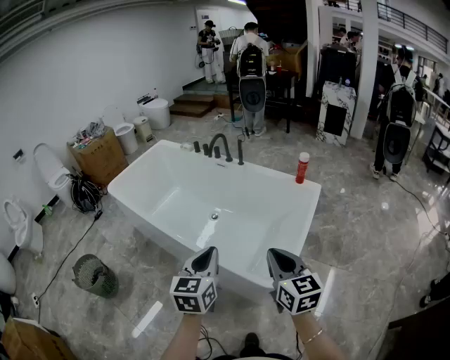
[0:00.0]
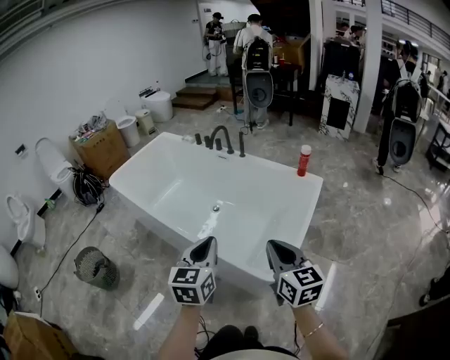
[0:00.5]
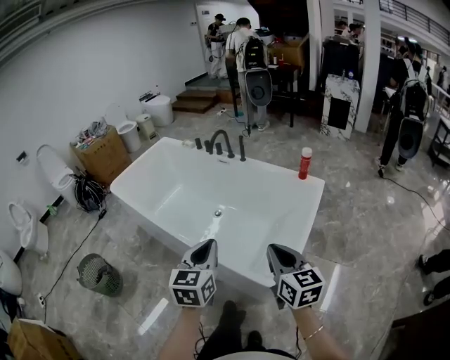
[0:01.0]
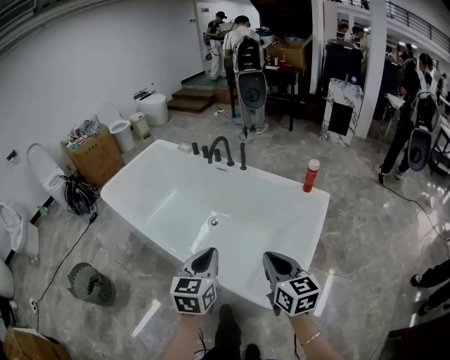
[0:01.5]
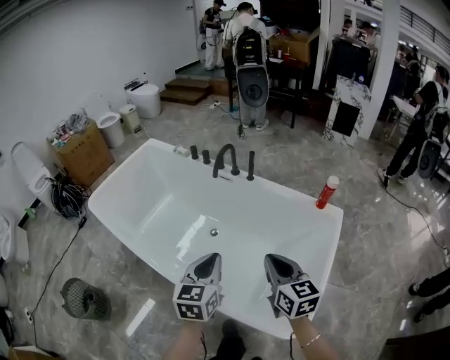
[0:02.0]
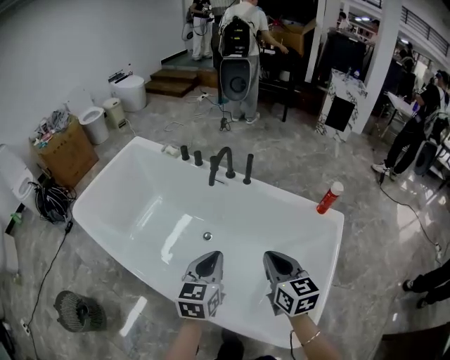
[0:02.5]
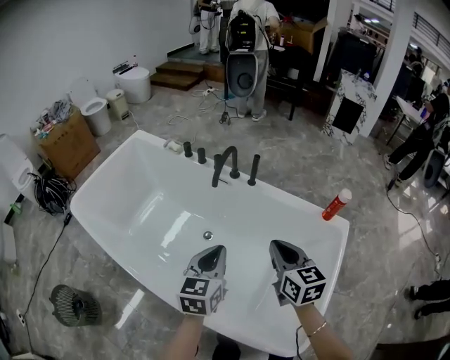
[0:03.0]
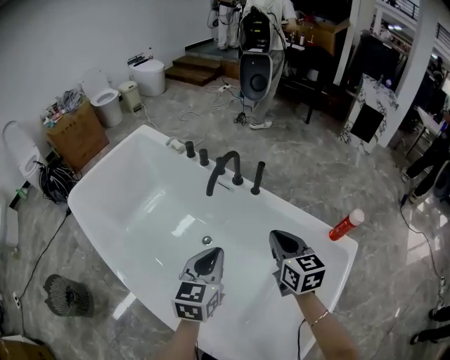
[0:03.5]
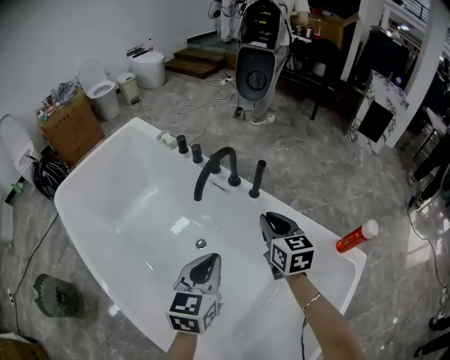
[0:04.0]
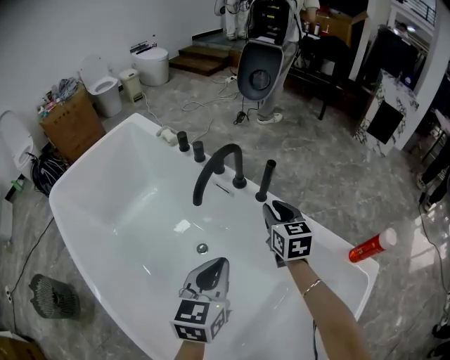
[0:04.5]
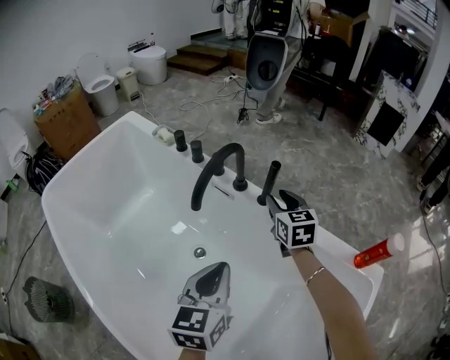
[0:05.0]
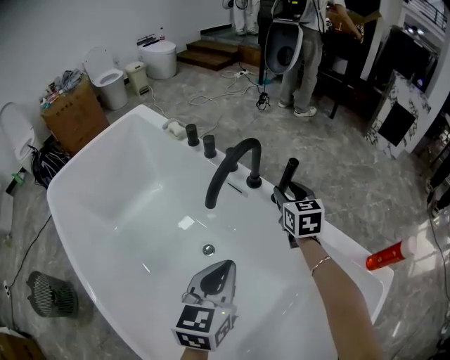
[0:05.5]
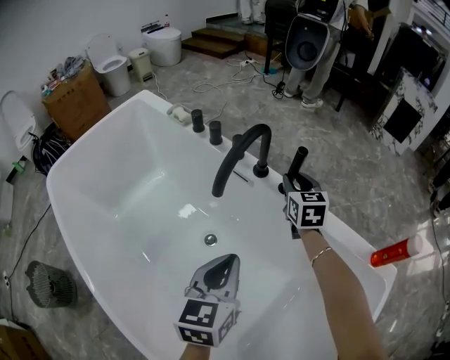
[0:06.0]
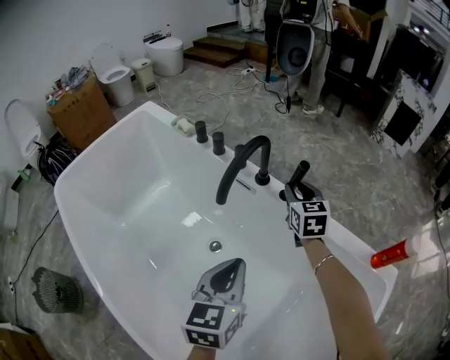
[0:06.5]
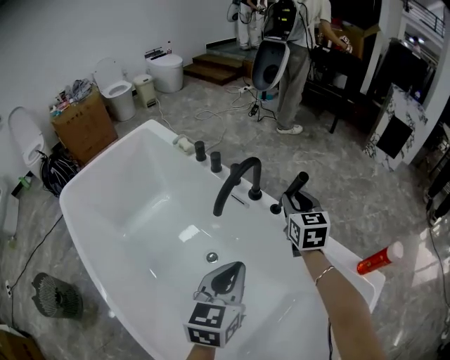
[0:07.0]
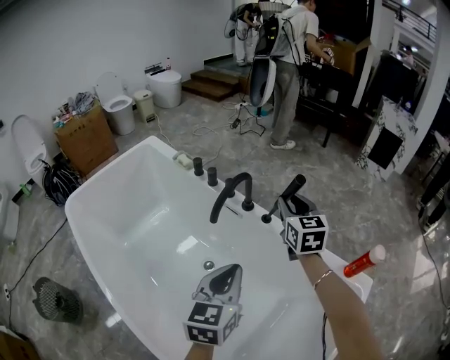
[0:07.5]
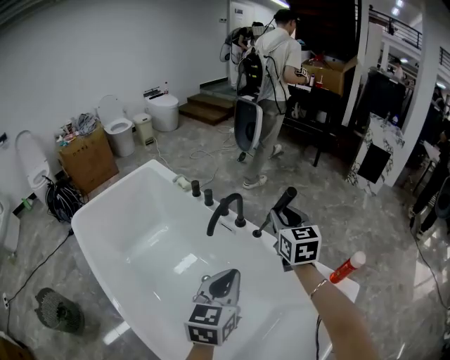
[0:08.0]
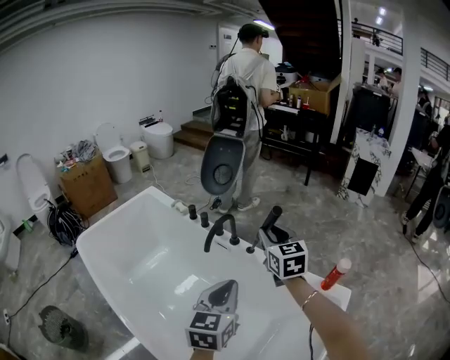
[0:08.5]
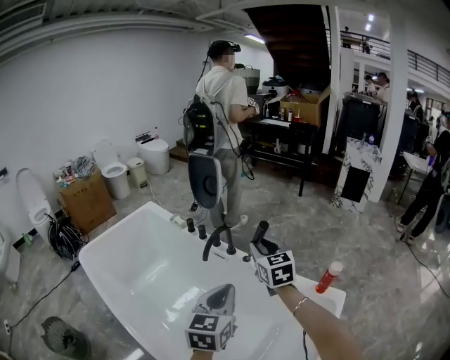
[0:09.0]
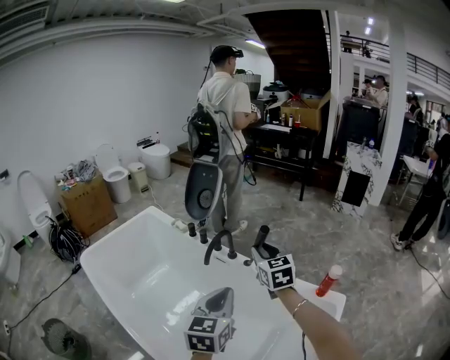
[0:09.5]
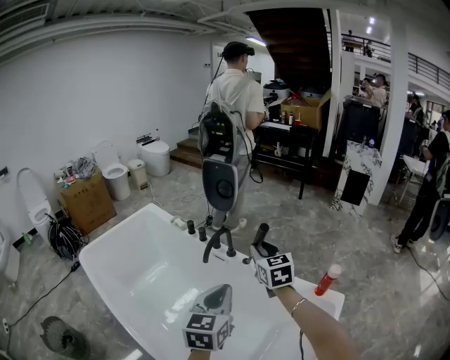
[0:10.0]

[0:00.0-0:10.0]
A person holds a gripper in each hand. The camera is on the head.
0.0 to 2.0 s: The two grippers travel together, forward, roughly 40 cm.
2.0 to 4.0 s: The two grippers travel together, forward, roughly 50 cm. Both grippers move downward, roughly 20 cm.
4.0 to 6.0 s: The left gripper is displaced downward and forward by approximately 20 cm. The right gripper moves forward and downward, roughly 30 cm.
6.0 to 8.0 s: The grippers both shift upward and backward by some 35 cm.
8.0 to 10.0 s: The left gripper shifts some 15 cm upward and backward, while the right gripper shifts some 20 cm backward and upward.

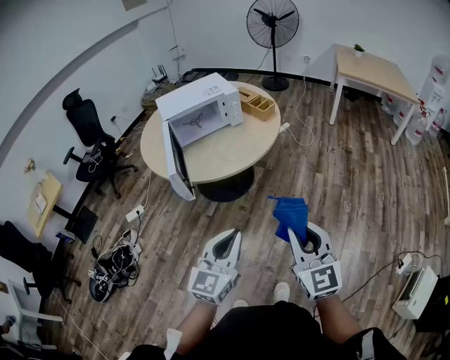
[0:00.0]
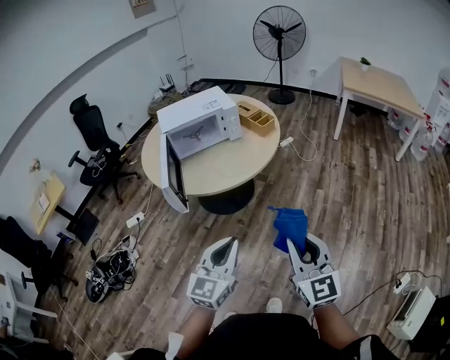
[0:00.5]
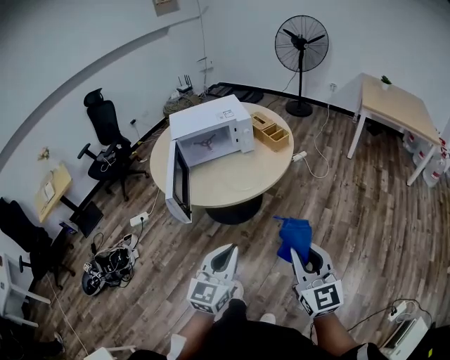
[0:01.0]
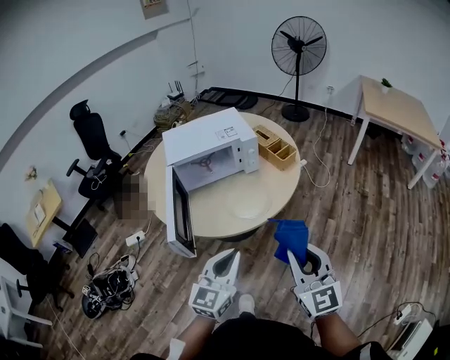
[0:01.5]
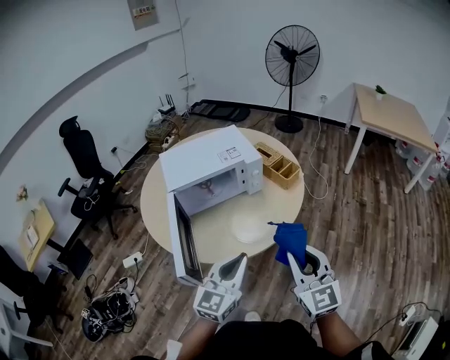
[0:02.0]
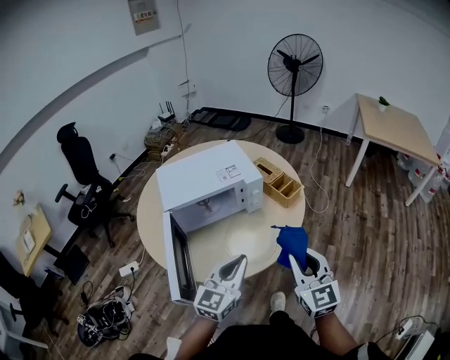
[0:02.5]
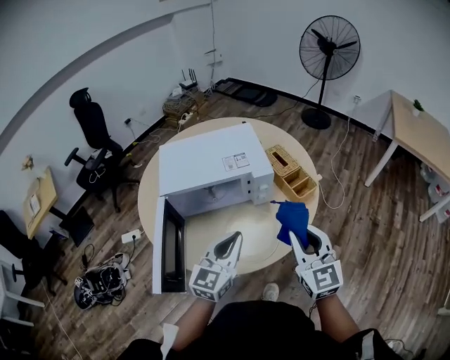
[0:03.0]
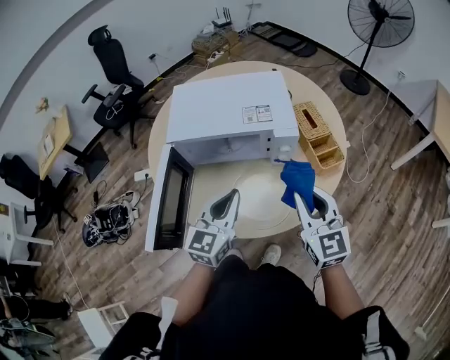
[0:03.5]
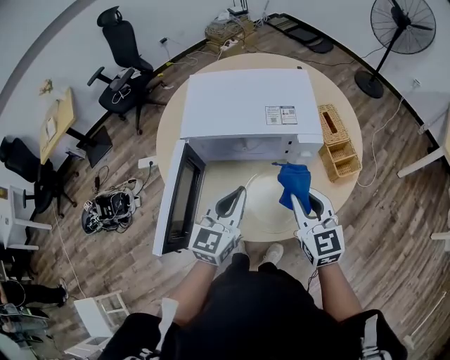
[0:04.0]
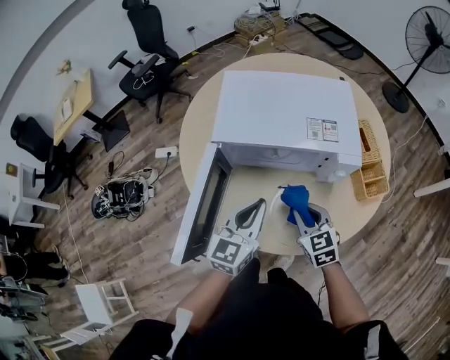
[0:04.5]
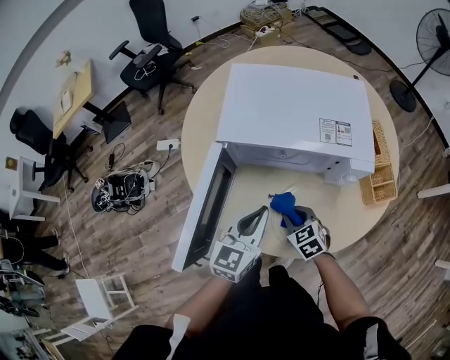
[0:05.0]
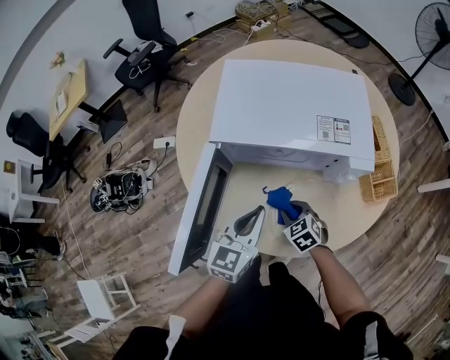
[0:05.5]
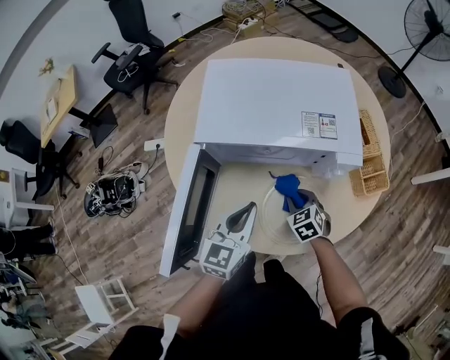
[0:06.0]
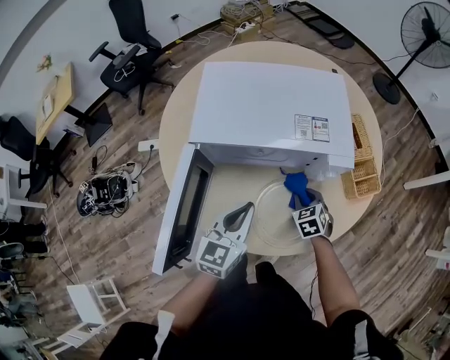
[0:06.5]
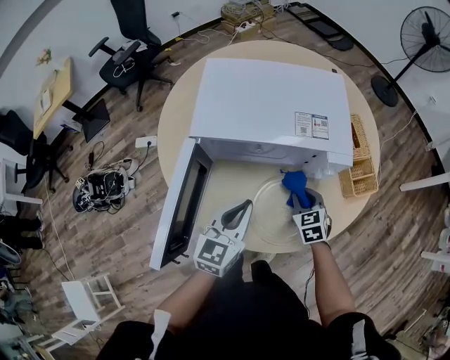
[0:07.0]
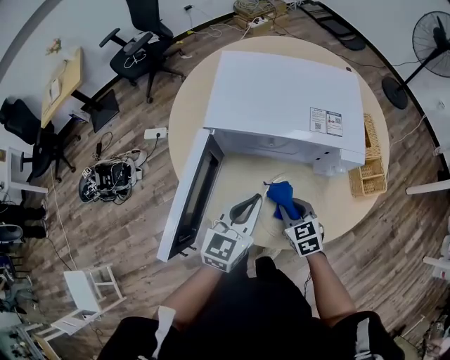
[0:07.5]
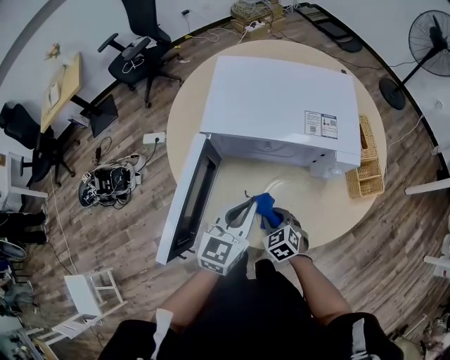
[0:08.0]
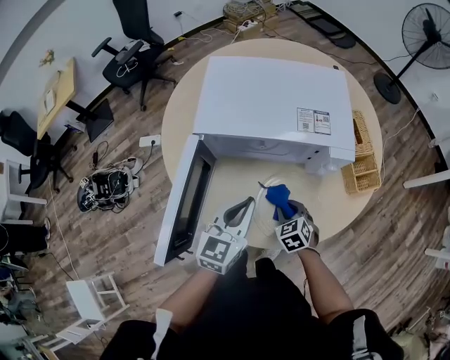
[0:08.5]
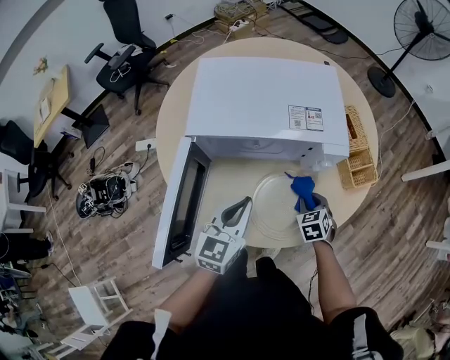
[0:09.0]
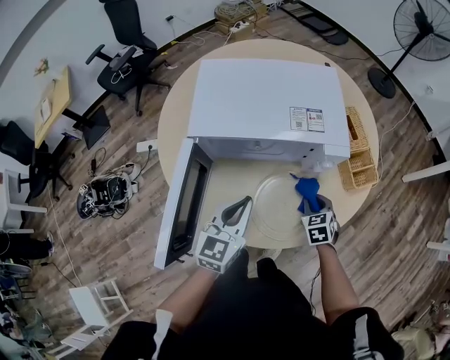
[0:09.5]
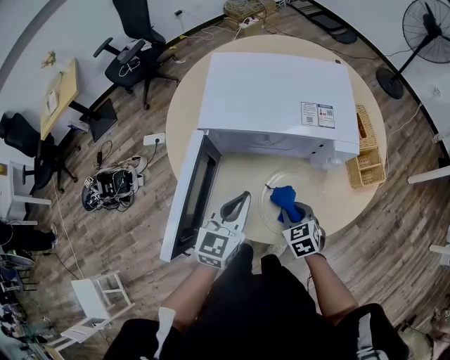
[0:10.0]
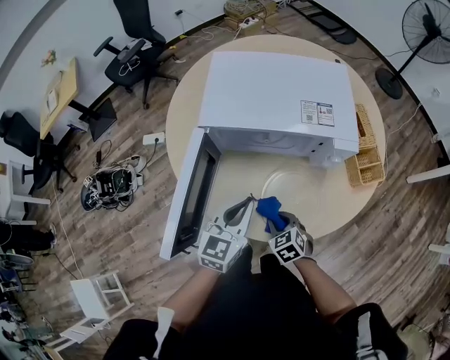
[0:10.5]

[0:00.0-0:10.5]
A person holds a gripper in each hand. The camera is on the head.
0.0 to 2.0 s: The two grippers go approximately 30 cm forward.
2.0 to 4.0 s: The right gripper moves approximately 30 cm, and changes its angle by some 30 degrees, while the left gripper changes place by about 25 cm, and swivels roughly 30 degrees.
4.0 to 6.5 s: The left gripper heads downward, covering roughly 5 cm; the right gripper shifts approximately 25 cm downward, and points its fingers approximately 40 degrees further downward.
6.5 to 8.5 s: The right gripper goes approximately 10 cm backward and to the left.
8.5 to 10.5 s: The right gripper travels backward by approximately 5 cm, and goes to the right and returns, approximately 10 cm each way.

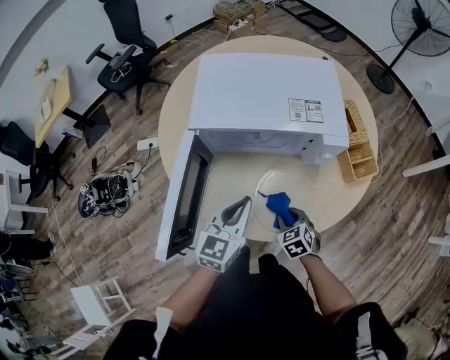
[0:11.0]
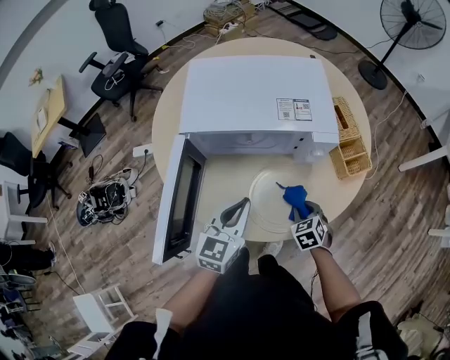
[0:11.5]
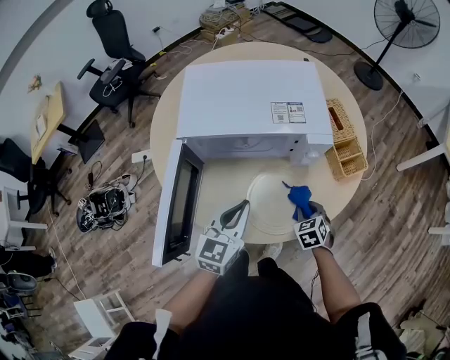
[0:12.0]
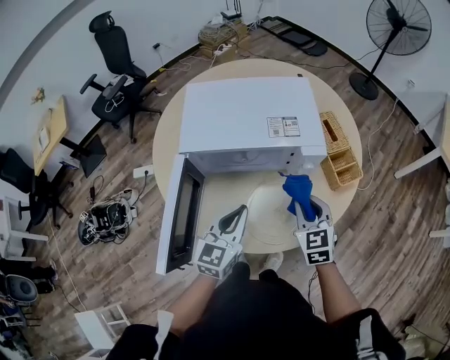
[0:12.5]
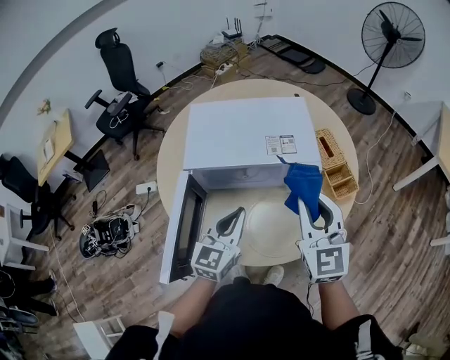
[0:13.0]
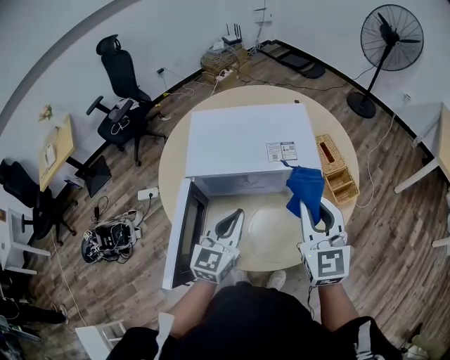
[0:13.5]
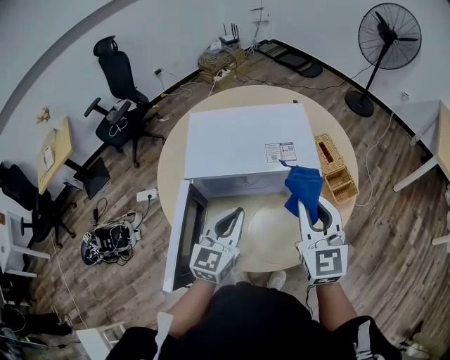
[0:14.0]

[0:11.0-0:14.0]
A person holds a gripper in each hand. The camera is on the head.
11.0 to 12.5 s: The right gripper shifts about 20 cm upward and forward, and turns by about 30 degrees.
12.5 to 14.0 s: The left gripper moves upward, about 5 cm, while the right gripper heads upward, covering roughly 15 cm, and changes its angle by roughly 20 degrees.

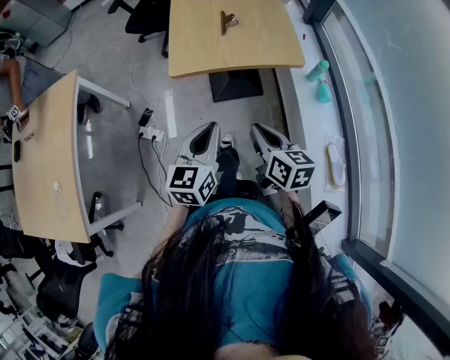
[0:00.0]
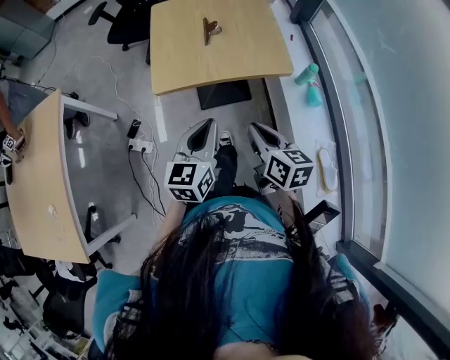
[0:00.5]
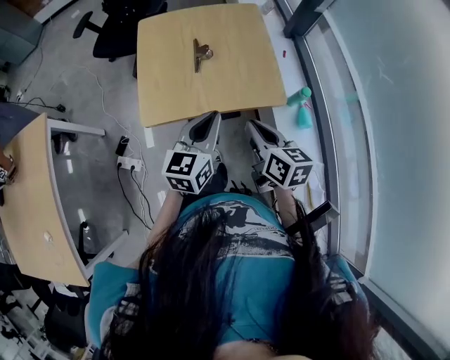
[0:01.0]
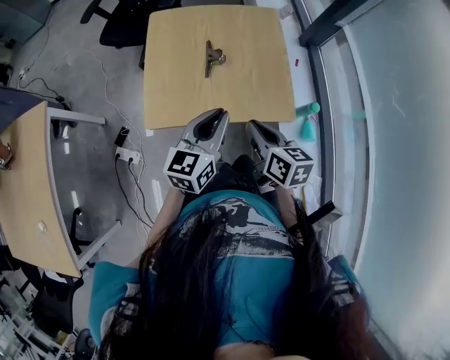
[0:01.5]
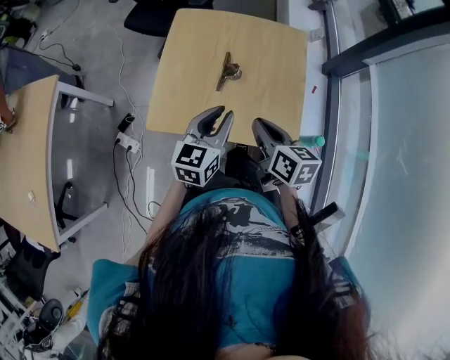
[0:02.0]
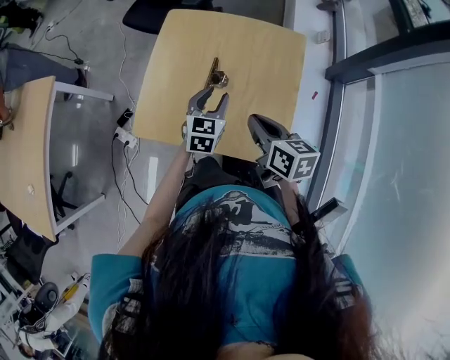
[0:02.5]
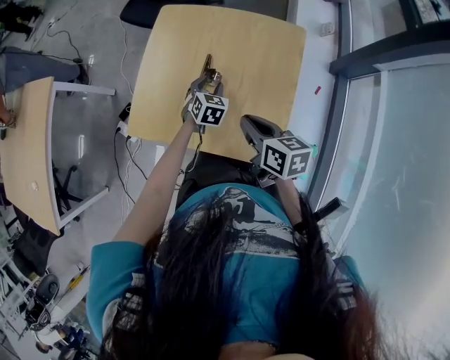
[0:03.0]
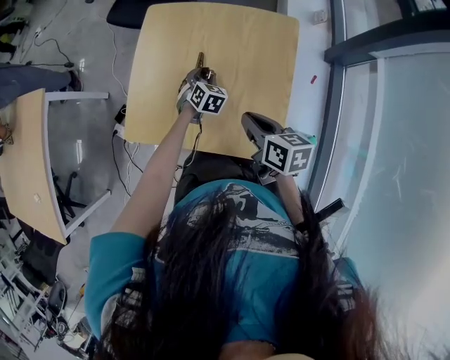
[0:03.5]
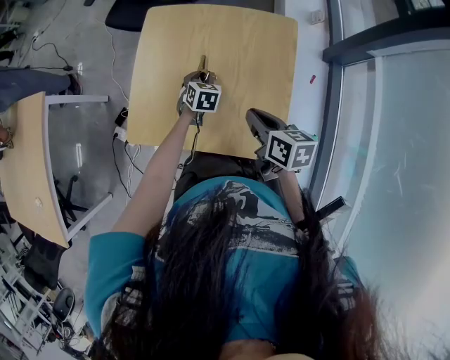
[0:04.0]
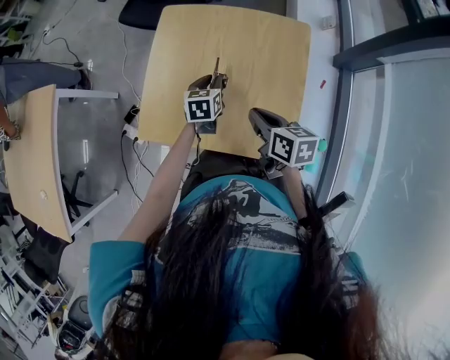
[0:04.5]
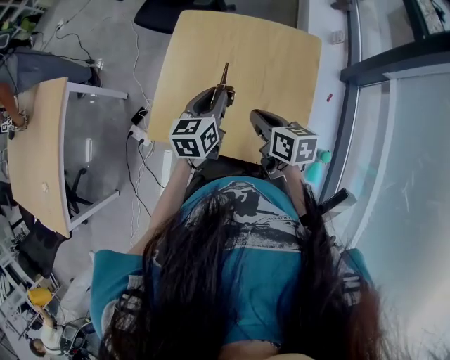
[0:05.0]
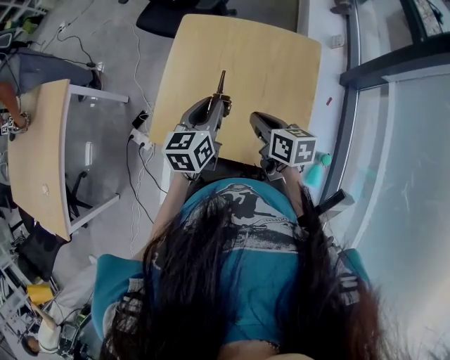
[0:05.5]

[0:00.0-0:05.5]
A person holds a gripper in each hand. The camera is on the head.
0.0 to 2.0 s: The two grippers travel together, forward, some 40 cm.
2.0 to 3.5 s: The left gripper travels downward, forward and to the right by about 35 cm, tilts its fingers roughly 40 degrees downward, and opens its fingers. The right gripper is displaced to the right, forward and downward by about 15 cm.
3.5 to 5.5 s: The right gripper travels to the left by about 5 cm, while the left gripper shifts some 20 cm upward, swivels approximately 50 degrees, and closes its fingers.
